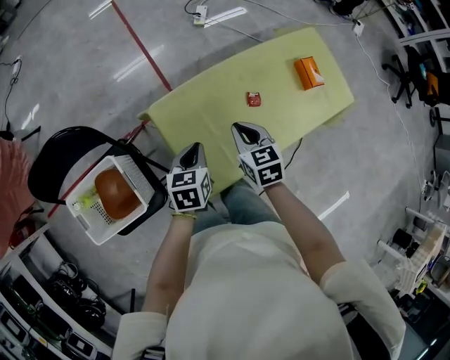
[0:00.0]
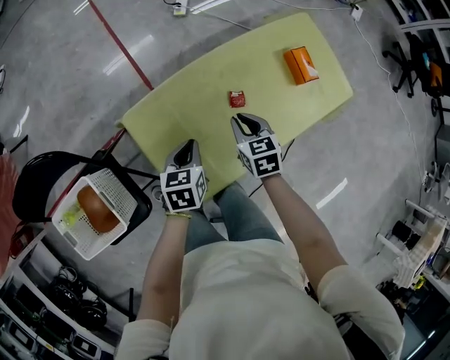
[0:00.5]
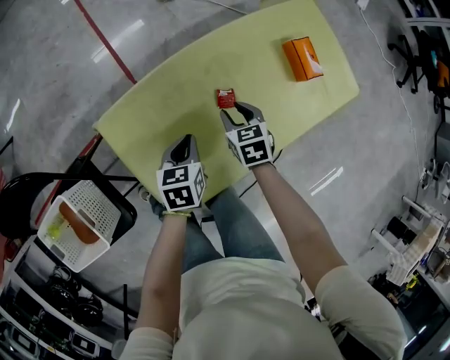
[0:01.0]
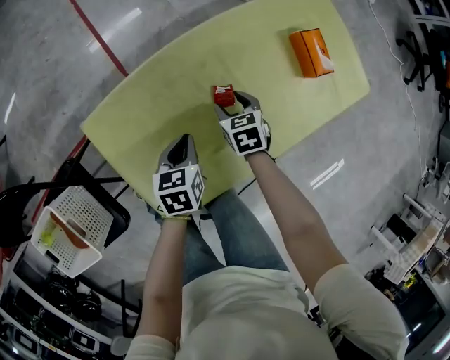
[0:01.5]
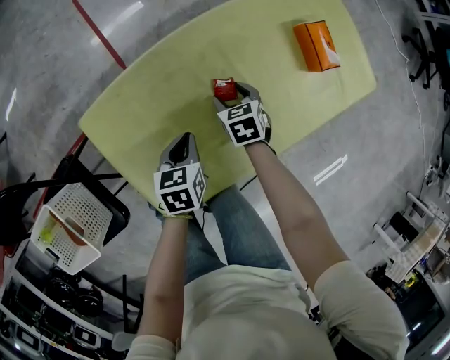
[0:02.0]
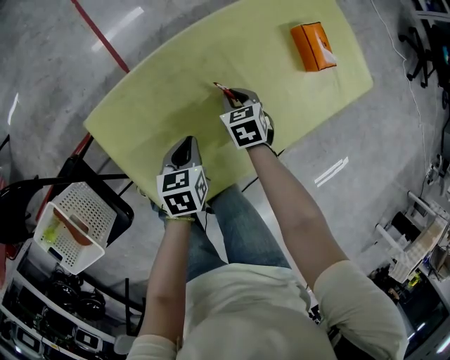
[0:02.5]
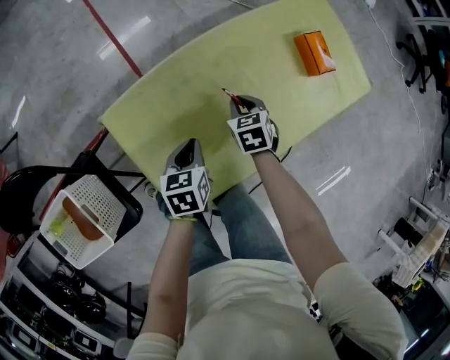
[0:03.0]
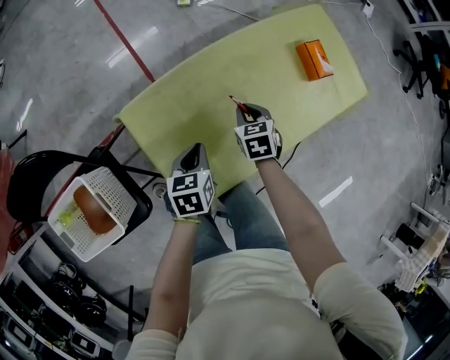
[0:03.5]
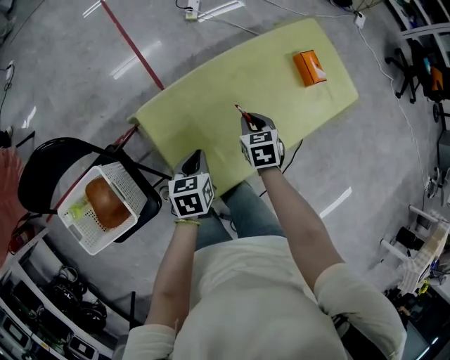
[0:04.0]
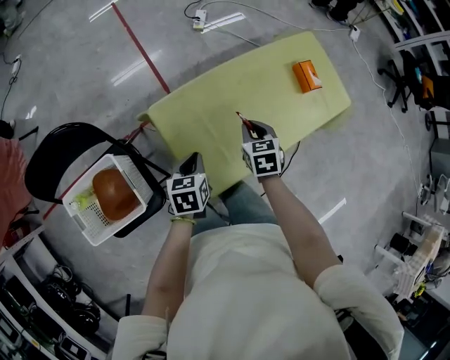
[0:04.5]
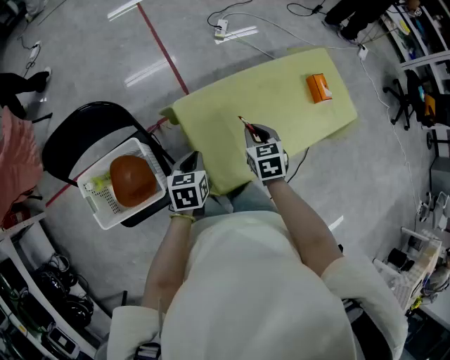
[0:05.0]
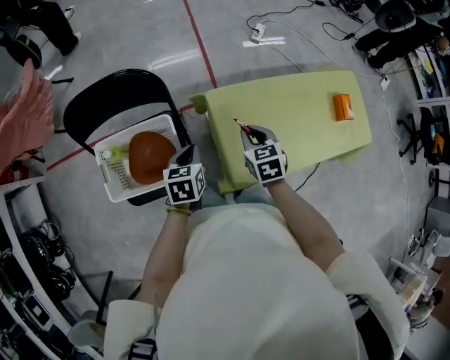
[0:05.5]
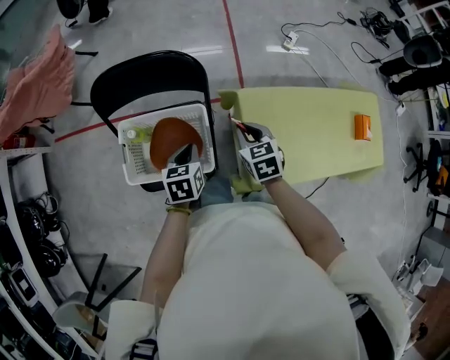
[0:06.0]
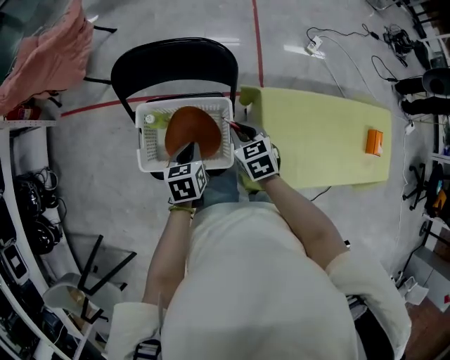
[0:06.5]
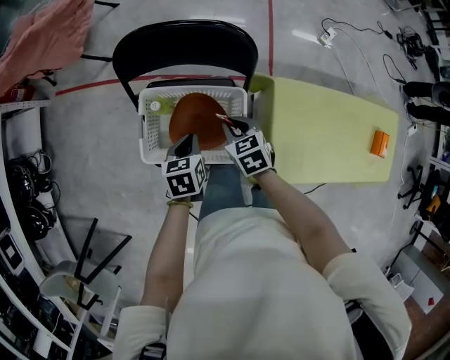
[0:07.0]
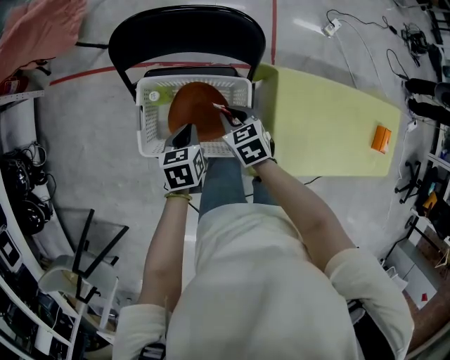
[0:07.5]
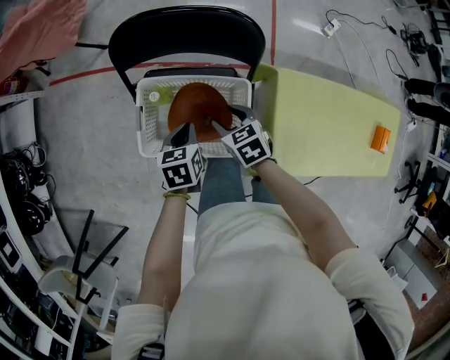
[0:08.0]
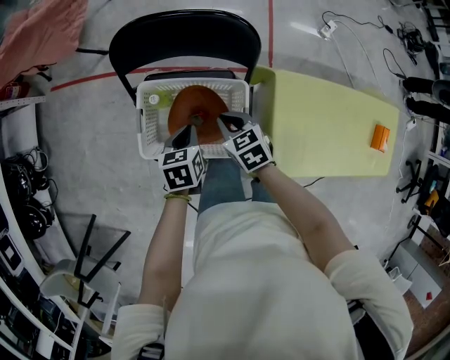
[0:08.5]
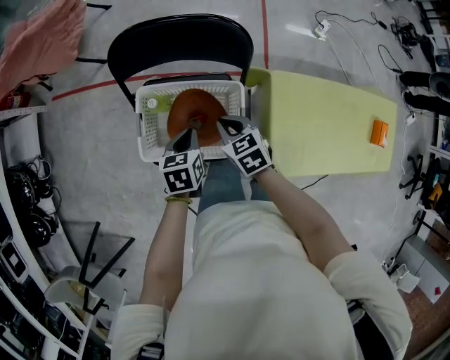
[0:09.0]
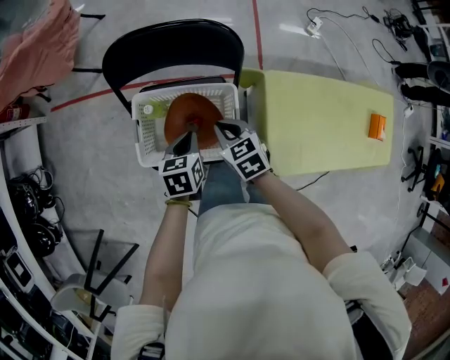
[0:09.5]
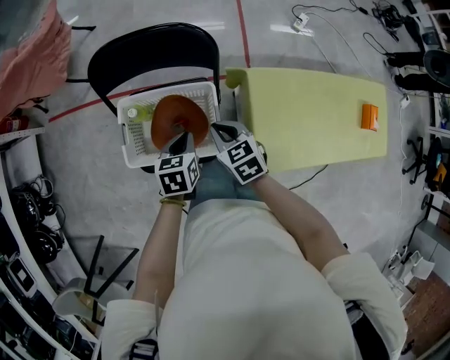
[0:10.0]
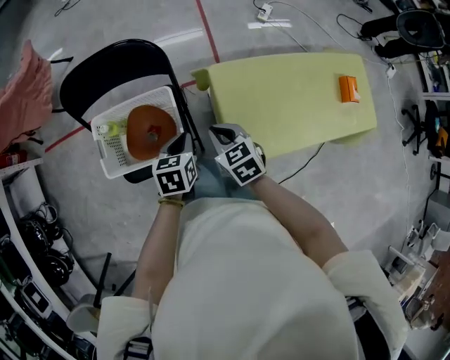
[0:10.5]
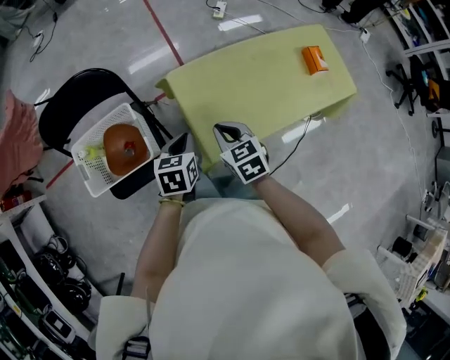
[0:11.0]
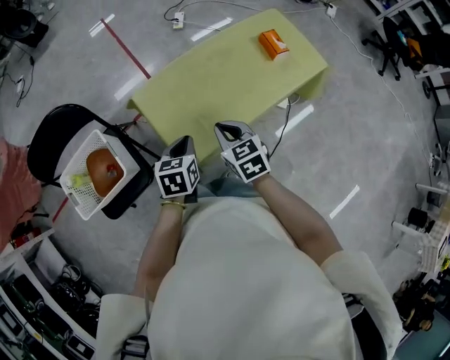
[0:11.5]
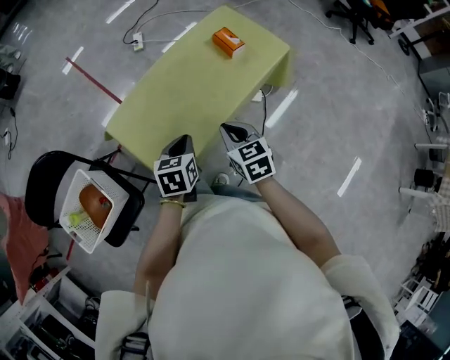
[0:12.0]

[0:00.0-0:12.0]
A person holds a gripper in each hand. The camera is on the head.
0:00.0 to 0:02.0: Both grippers move downward and to the right, approximately 30 cm. The right gripper opens up.
0:02.0 to 0:04.0: The left gripper shifts roughly 20 cm upward, to the left and backward. Meanwhile the right gripper is displaced upward and backward by roughly 20 cm, and closes up.
0:04.0 to 0:06.0: The right gripper changes place by some 40 cm, and changes its angle by roughly 30 degrees. The left gripper shifts by roughly 40 cm, and changes its angle by some 30 degrees.
0:06.0 to 0:08.0: The left gripper goes some 15 cm to the left and downward. Meanwhile the right gripper is displaced to the left and downward by roughly 20 cm, swivels some 20 degrees, and opens its fingers.
0:08.0 to 0:10.0: The left gripper is displaced to the right by approximately 5 cm; the right gripper goes about 10 cm upward, backward and to the right, and closes.
0:10.0 to 0:12.0: The pair of grippers is taken roughly 60 cm. The right gripper changes its angle by some 50 degrees; the left gripper rotates some 40 degrees.

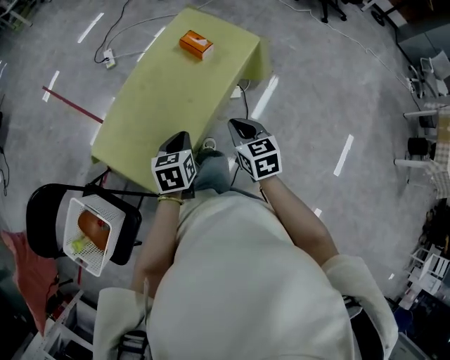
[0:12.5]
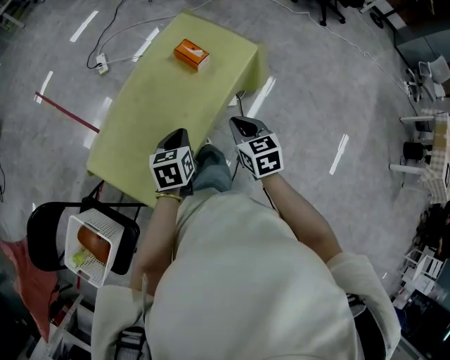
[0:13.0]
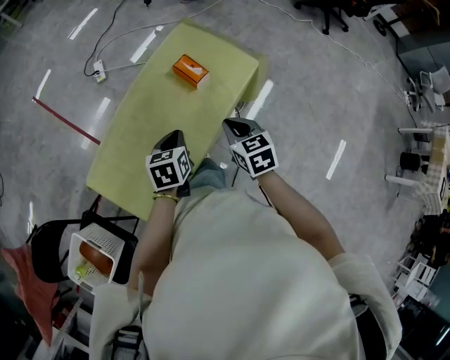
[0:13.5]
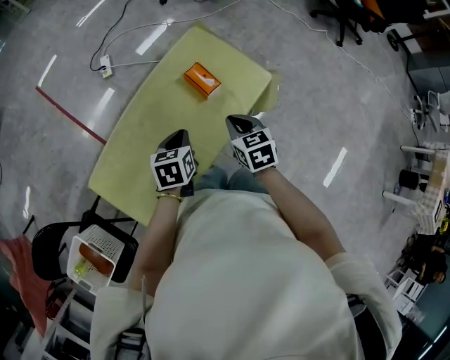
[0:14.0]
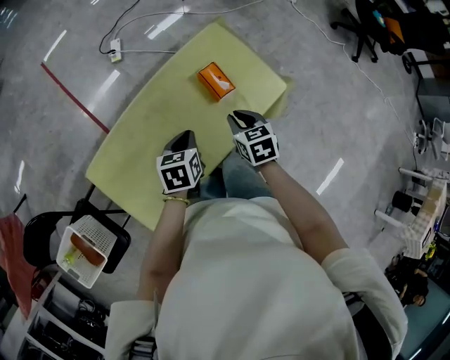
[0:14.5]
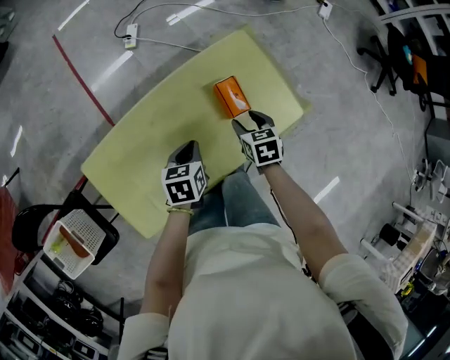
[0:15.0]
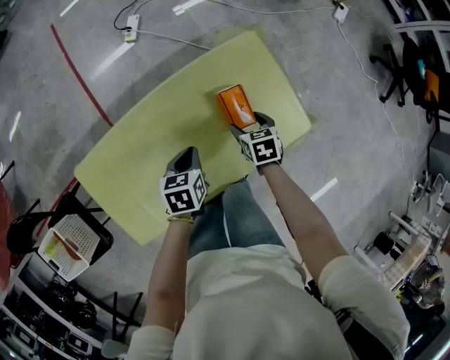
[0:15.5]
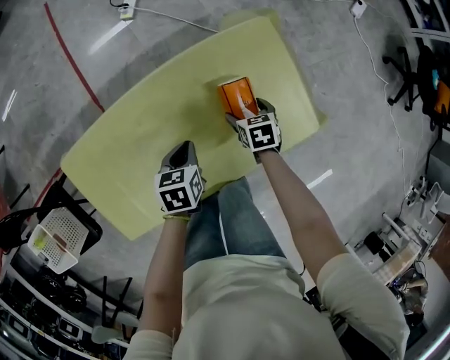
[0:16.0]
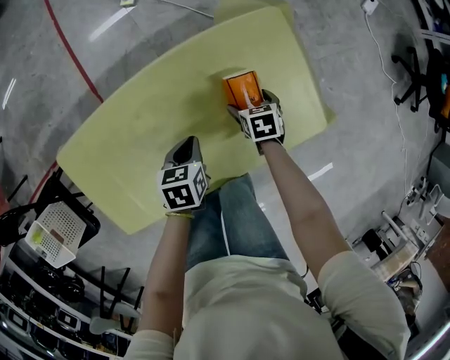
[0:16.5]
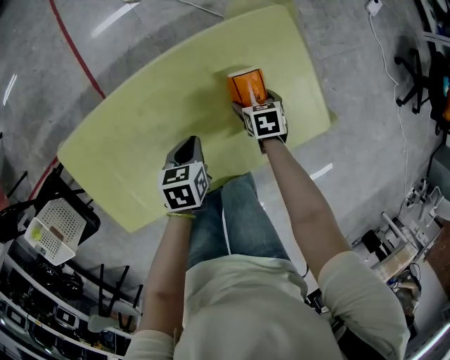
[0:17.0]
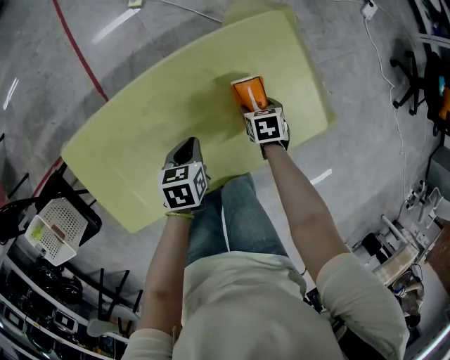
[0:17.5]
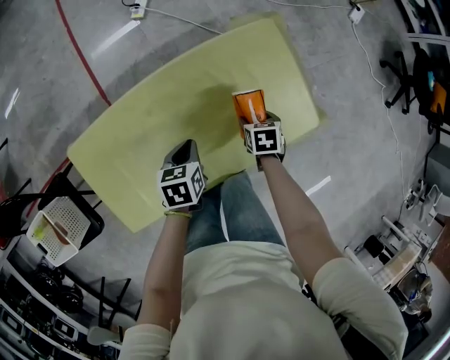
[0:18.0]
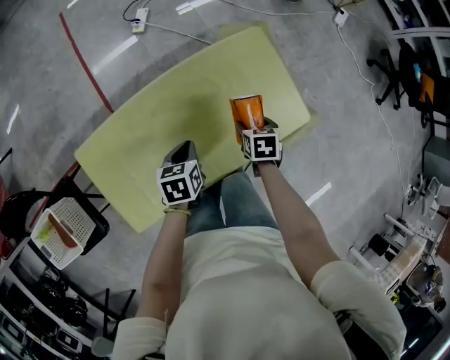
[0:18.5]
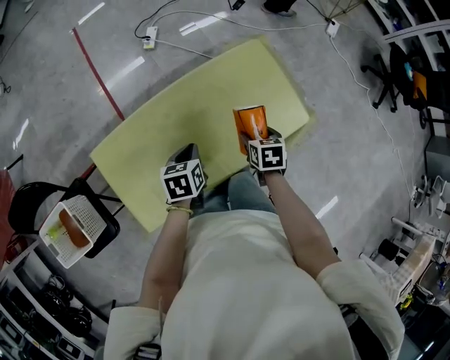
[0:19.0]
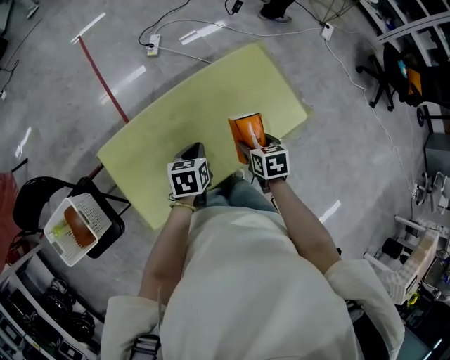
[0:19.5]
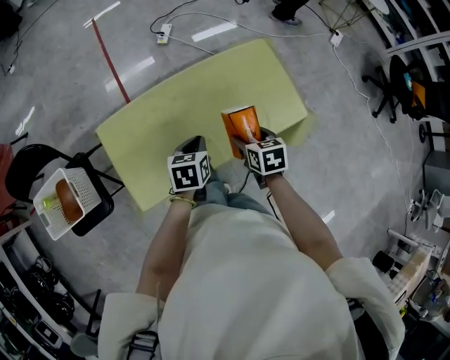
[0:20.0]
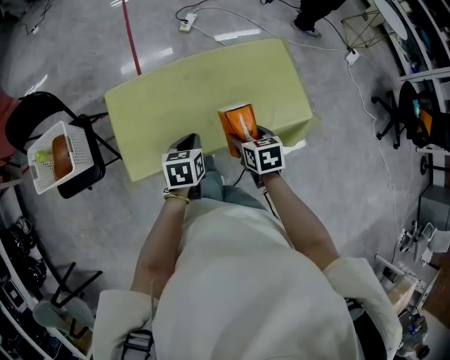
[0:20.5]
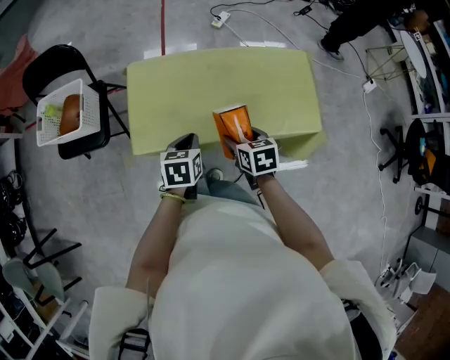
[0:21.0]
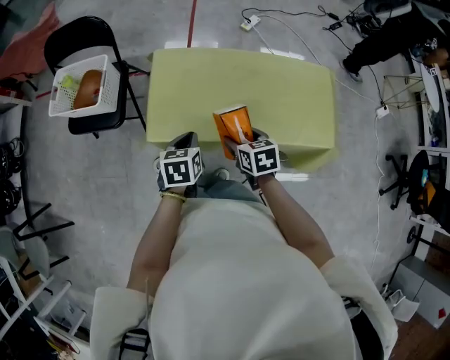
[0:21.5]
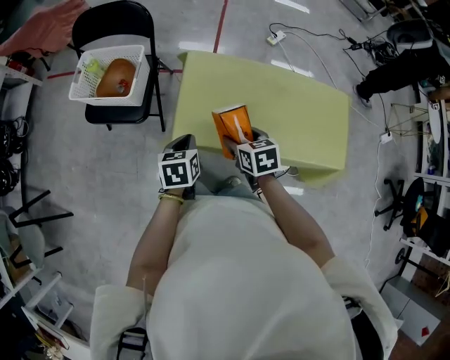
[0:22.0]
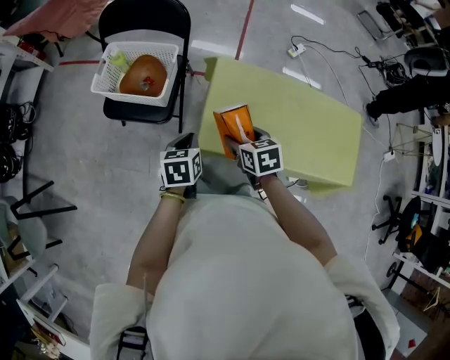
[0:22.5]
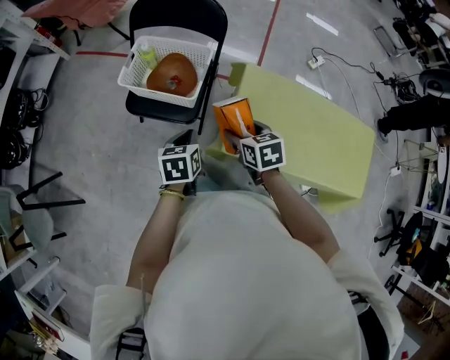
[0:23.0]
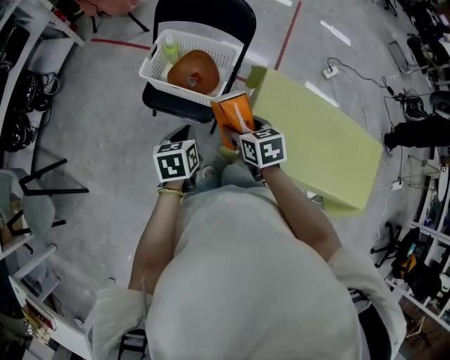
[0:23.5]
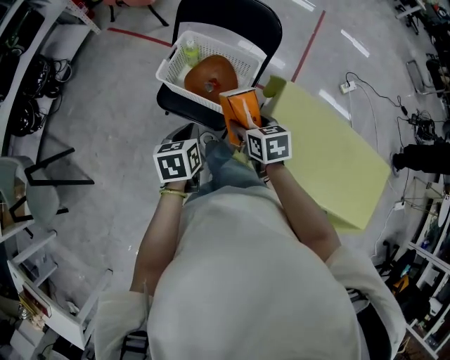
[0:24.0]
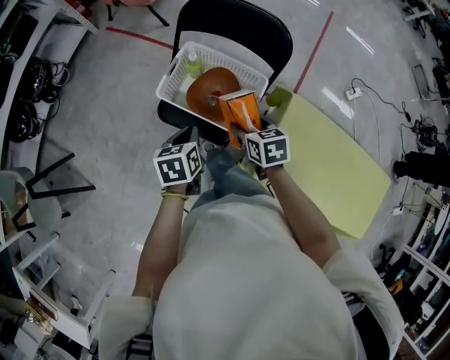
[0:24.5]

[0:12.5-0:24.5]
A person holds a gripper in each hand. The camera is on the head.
0:12.5 to 0:14.5: Both grippers move forward, approximately 30 cm.
0:14.5 to 0:16.5: The right gripper heads downward and forward, covering some 30 cm, rotates about 20 degrees, and opens; the left gripper shifts roughly 20 cm downward and forward, and changes its angle by some 20 degrees.
0:16.5 to 0:18.5: Both grippers move upward, roughly 10 cm.
0:18.5 to 0:20.5: Both grippers travel together backward and upward, some 25 cm. The right gripper swivels some 30 degrees.
0:20.5 to 0:22.5: The two grippers travel together, roughly 40 cm. The left gripper turns by roughly 30 degrees. Meanwhile the right gripper rotates about 30 degrees.
0:22.5 to 0:24.5: The right gripper shifts approximately 35 cm forward and to the left. The left gripper travels to the left and forward by some 30 cm, and rotates some 20 degrees.

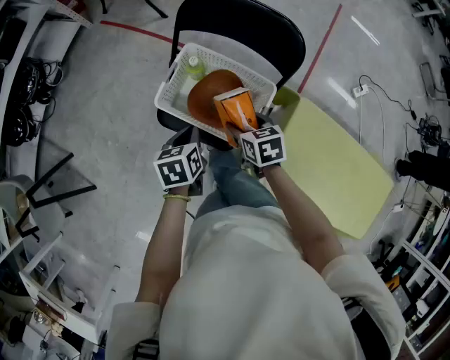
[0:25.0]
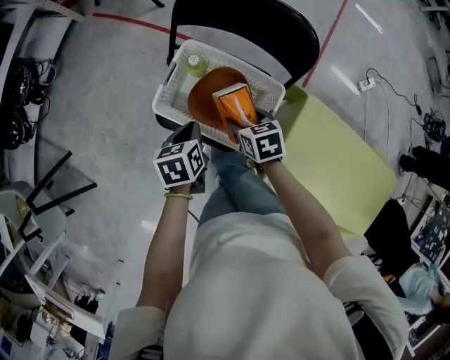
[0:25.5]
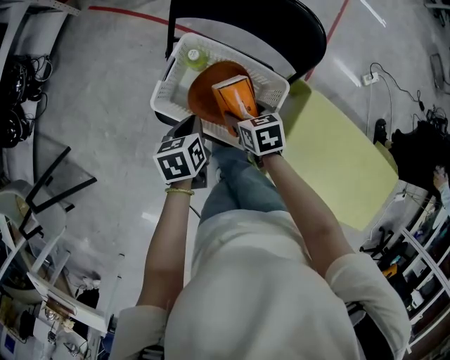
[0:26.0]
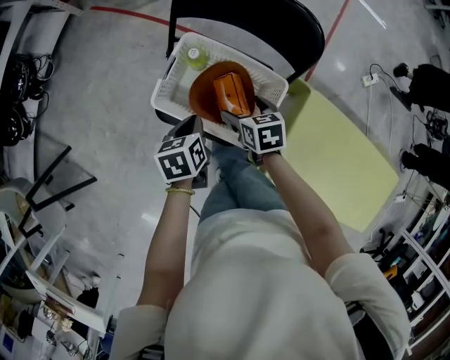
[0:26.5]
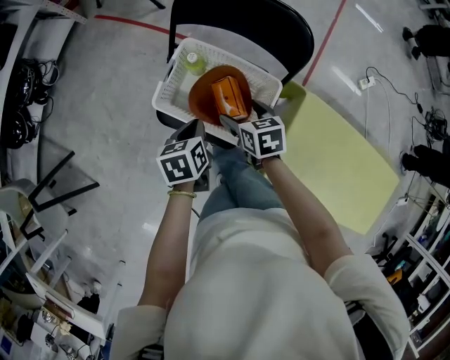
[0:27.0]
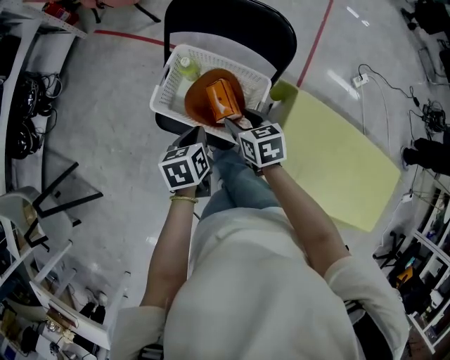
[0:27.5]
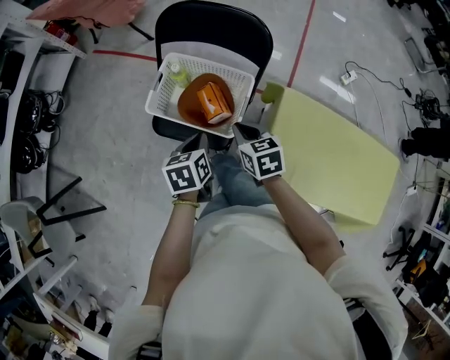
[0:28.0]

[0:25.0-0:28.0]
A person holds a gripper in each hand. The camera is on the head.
0:25.0 to 0:26.5: The right gripper heads downward, covering about 5 cm. Meanwhile the left gripper shifts by about 5 cm.
0:26.5 to 0:28.0: The right gripper heads backward and upward, covering some 15 cm, and closes up. Meanwhile the left gripper is displaced backward, upward and to the right by roughly 15 cm.
